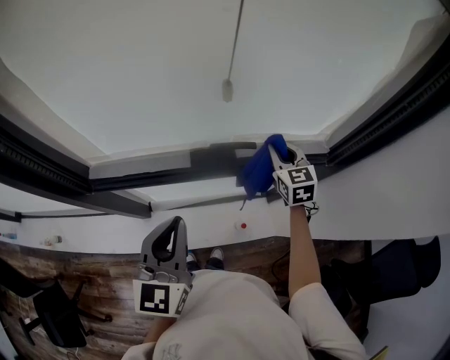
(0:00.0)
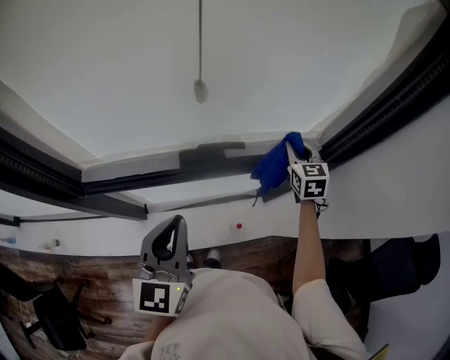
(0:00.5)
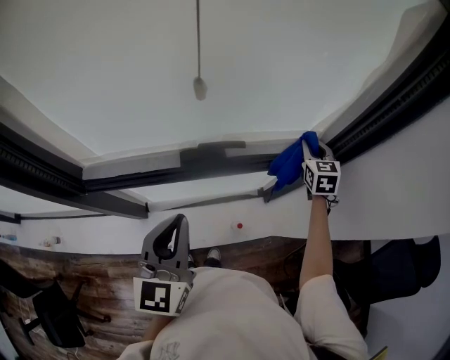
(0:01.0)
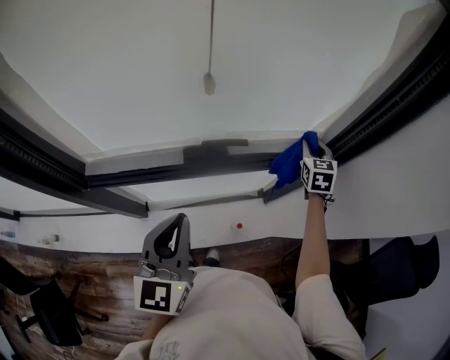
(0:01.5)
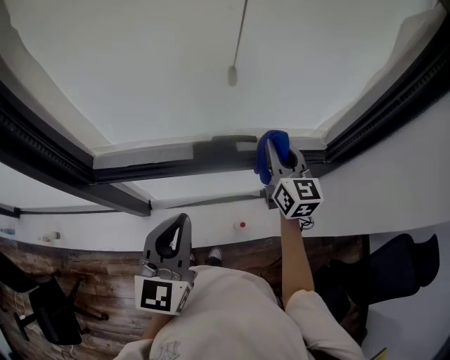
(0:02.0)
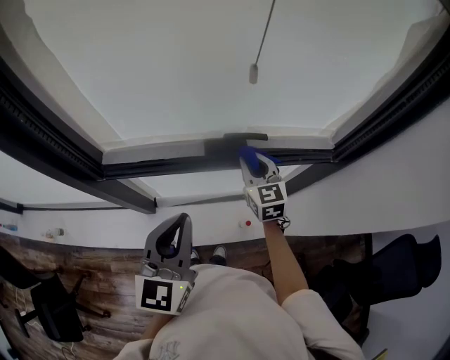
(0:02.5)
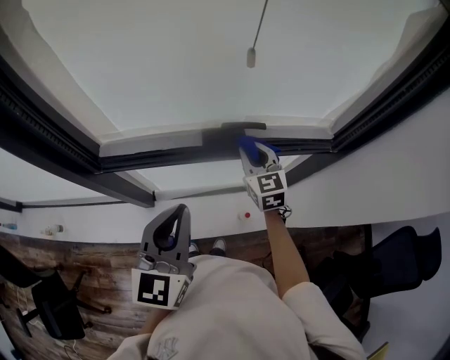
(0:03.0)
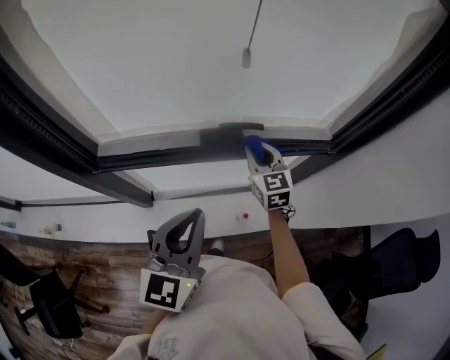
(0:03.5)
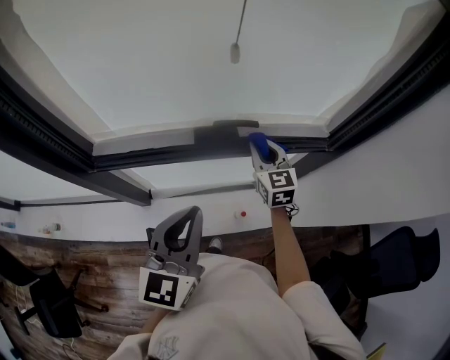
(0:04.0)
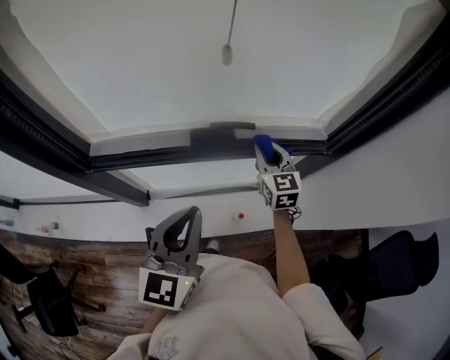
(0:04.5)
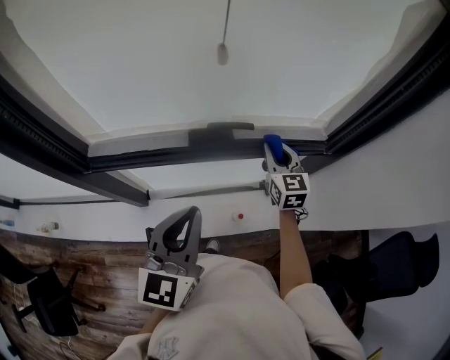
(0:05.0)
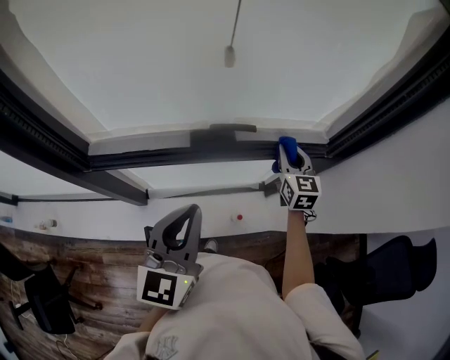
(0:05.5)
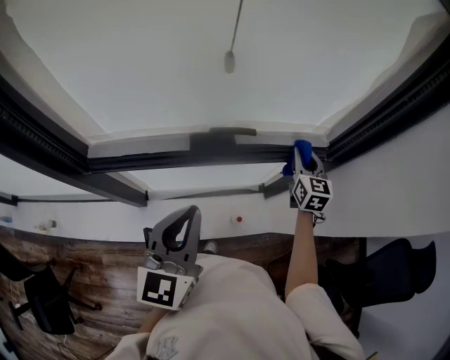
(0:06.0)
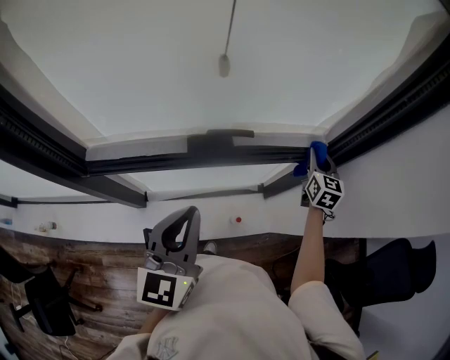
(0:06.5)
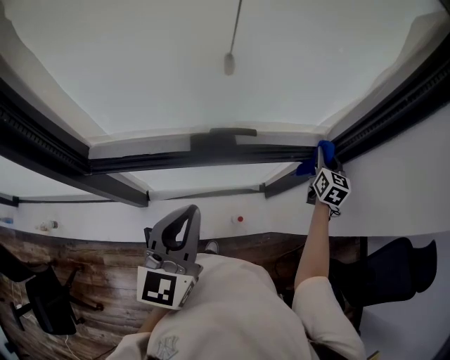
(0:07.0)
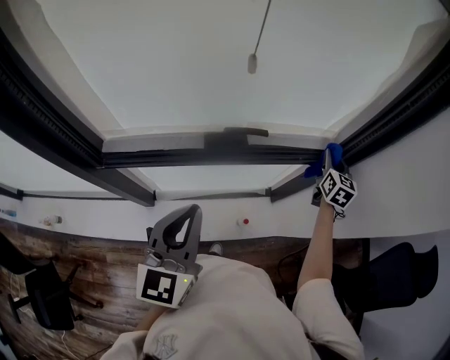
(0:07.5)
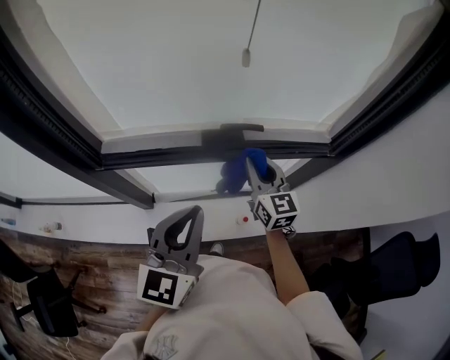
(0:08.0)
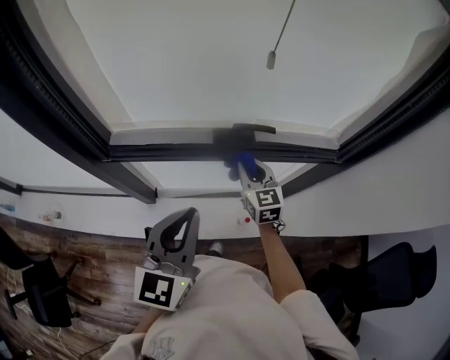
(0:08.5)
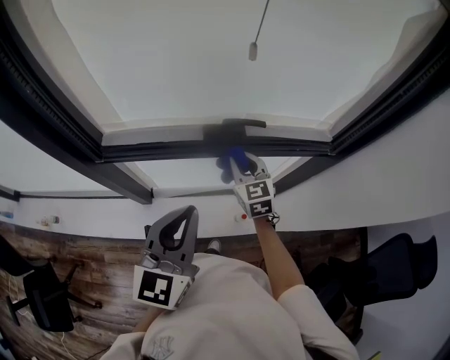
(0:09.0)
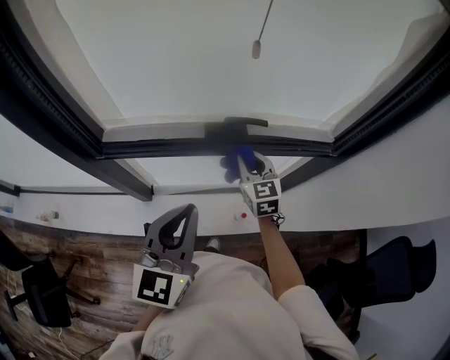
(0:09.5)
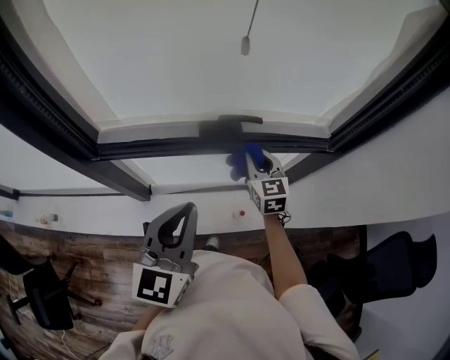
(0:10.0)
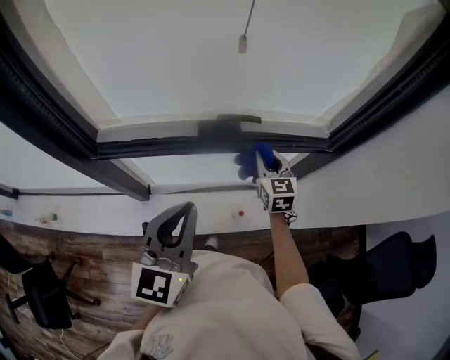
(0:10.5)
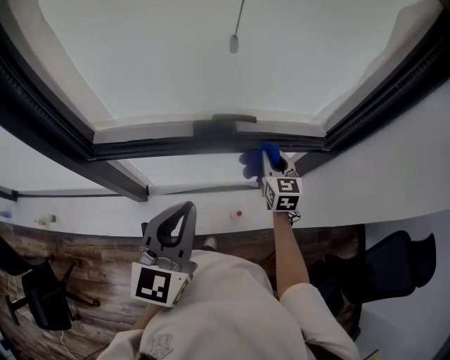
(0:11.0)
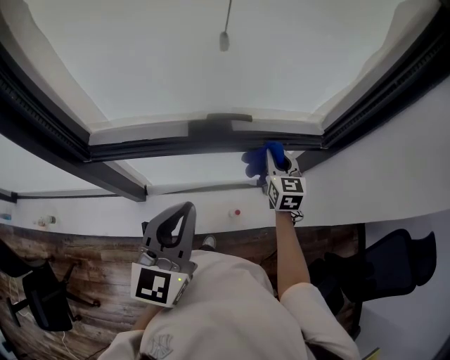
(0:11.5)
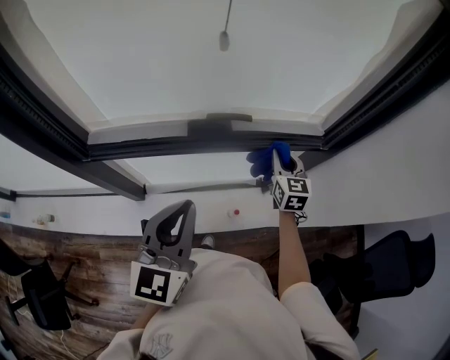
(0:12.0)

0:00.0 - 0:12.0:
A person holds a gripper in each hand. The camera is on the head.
0:00.0 - 0:02.0: The right gripper moves upward and backward, approximately 10 cm, goes to the right and returns, some 15 cm each way, and turns by approximately 20 degrees.
0:02.0 - 0:04.0: The right gripper goes approximately 10 cm downward.
0:04.0 - 0:06.0: The right gripper moves to the right, roughly 15 cm.
0:06.0 - 0:08.0: The right gripper is displaced to the left and backward by approximately 20 cm, and swivels about 20 degrees.
0:08.0 - 0:10.0: The right gripper shifts roughly 5 cm downward.
0:10.0 - 0:12.0: The right gripper moves to the right, some 10 cm.

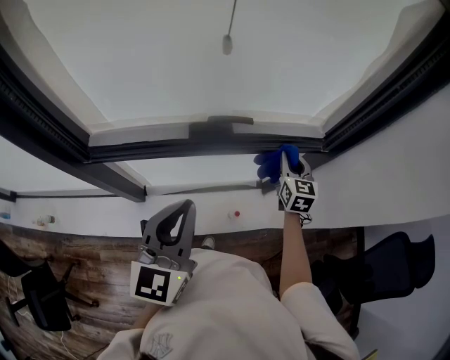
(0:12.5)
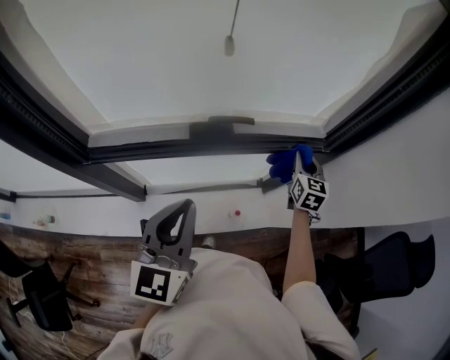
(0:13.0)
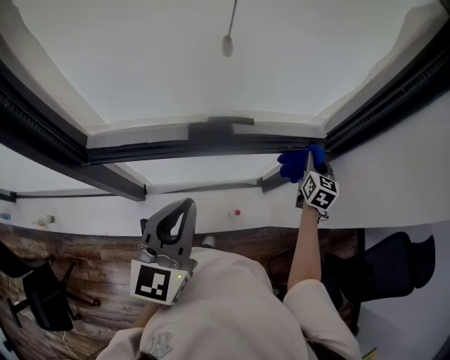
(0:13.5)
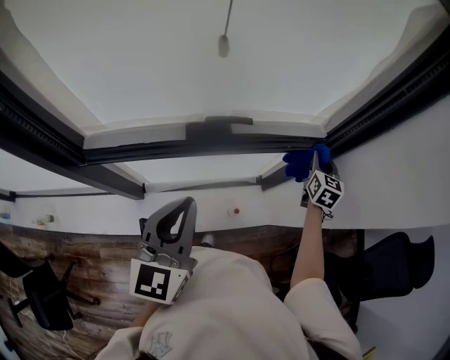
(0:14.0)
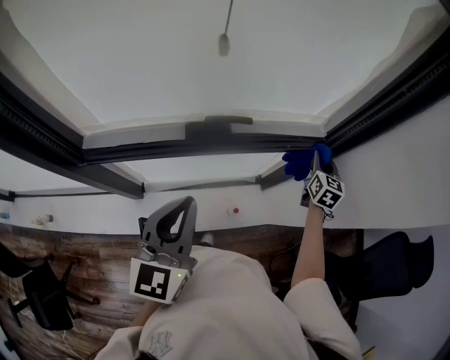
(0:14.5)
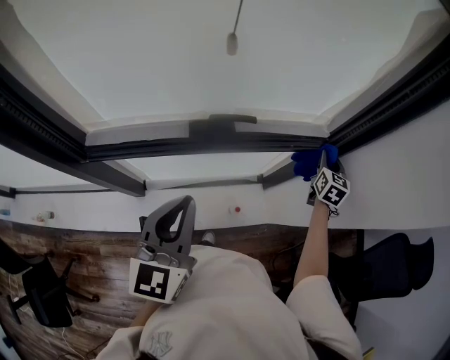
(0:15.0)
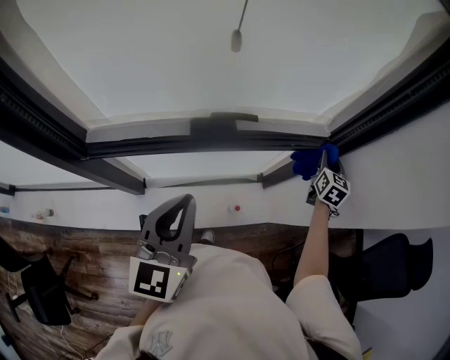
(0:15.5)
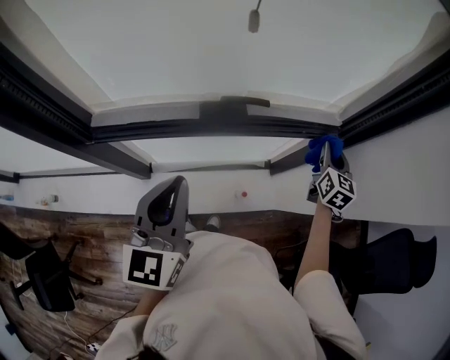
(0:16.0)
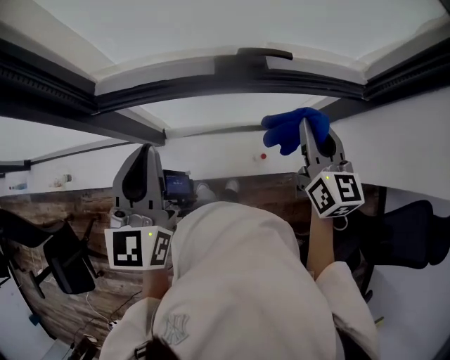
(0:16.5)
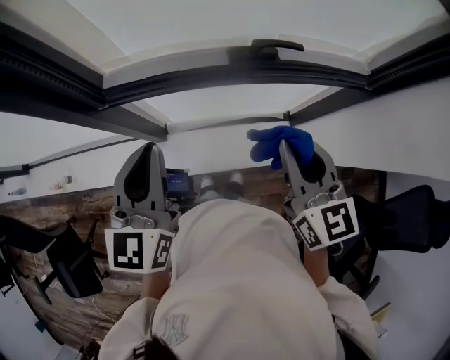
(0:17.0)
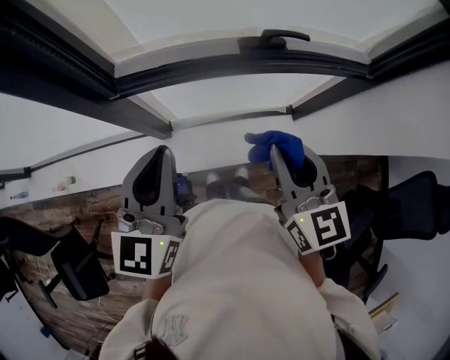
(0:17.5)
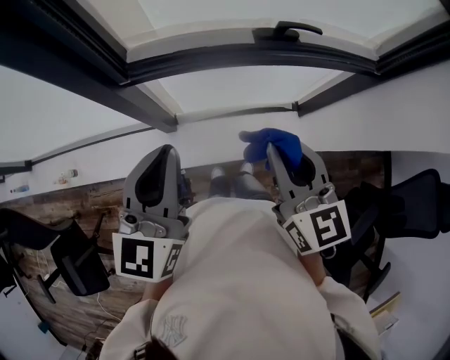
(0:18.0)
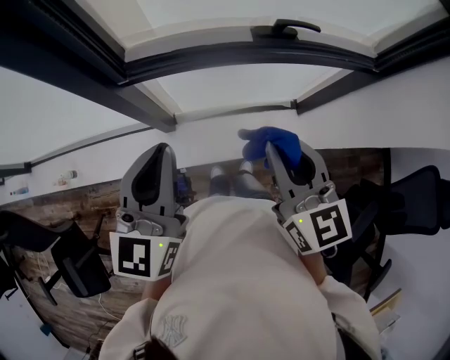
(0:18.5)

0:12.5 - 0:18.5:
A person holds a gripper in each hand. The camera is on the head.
0:12.5 - 0:14.5: The right gripper moves to the right, roughly 10 cm.
0:14.5 - 0:16.5: The right gripper shifts approximately 25 cm to the left and backward, and swivels about 30 degrees. Meanwhile the left gripper moves to the left, about 15 cm.
0:16.5 - 0:18.5: The right gripper goes roughly 25 cm to the left and backward. Meanwhile the left gripper heads to the left and backward, covering roughly 10 cm.

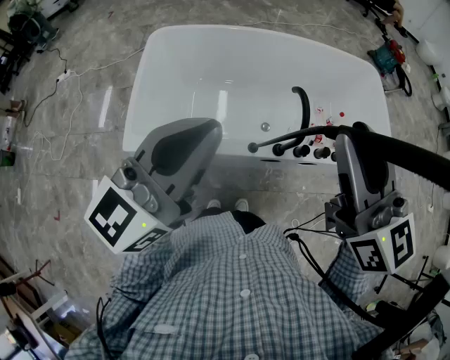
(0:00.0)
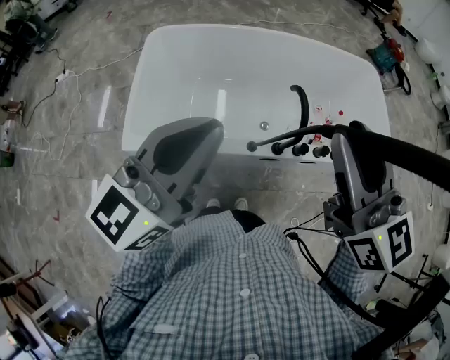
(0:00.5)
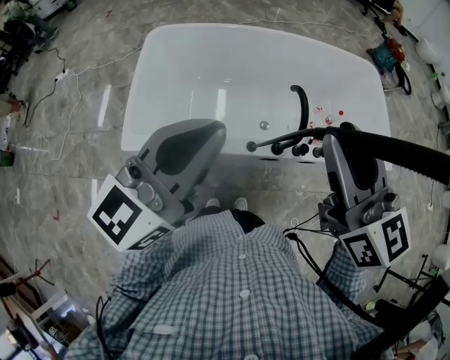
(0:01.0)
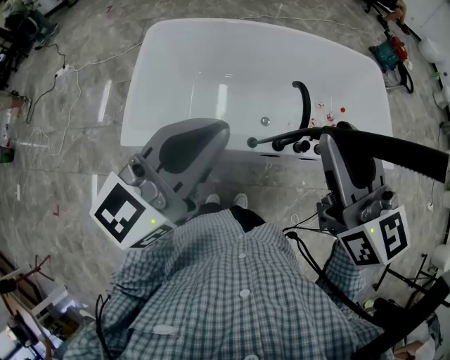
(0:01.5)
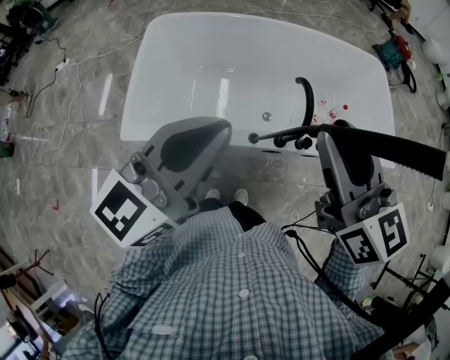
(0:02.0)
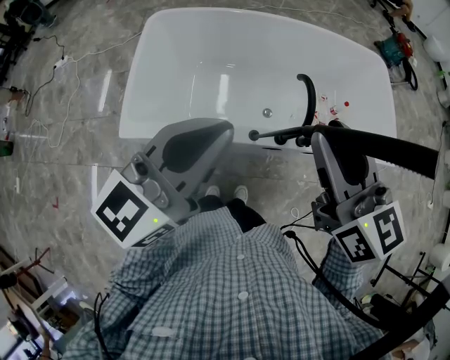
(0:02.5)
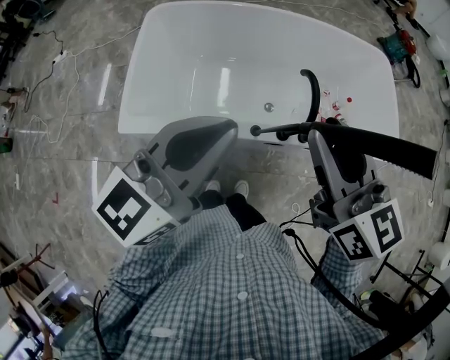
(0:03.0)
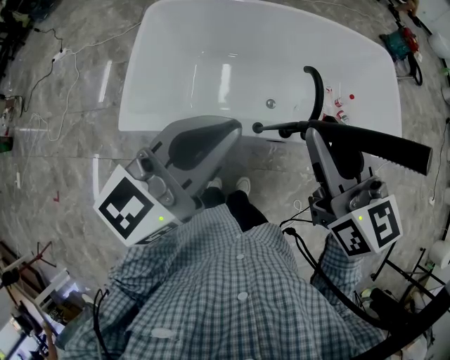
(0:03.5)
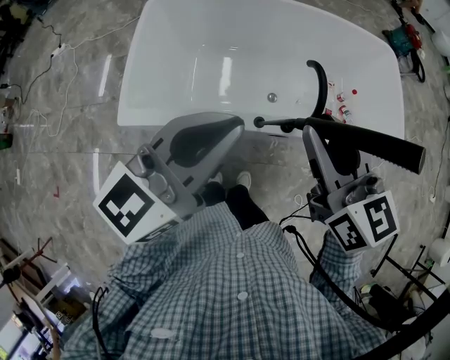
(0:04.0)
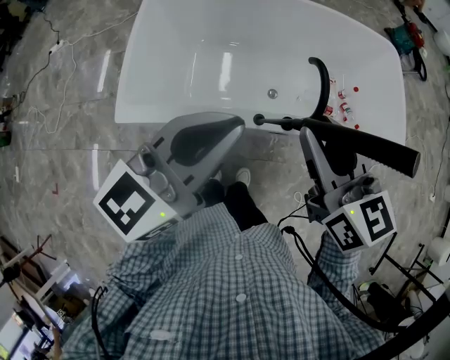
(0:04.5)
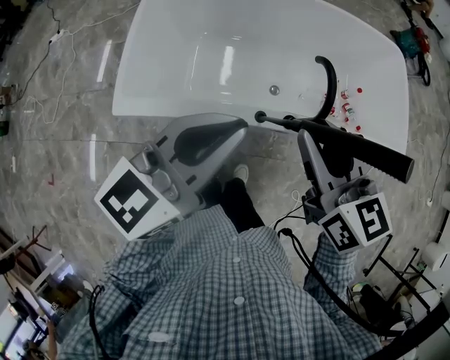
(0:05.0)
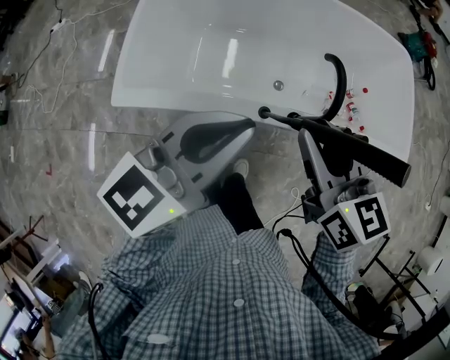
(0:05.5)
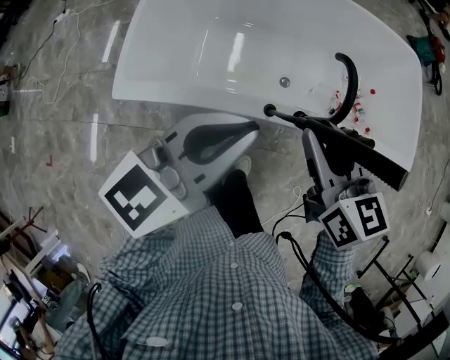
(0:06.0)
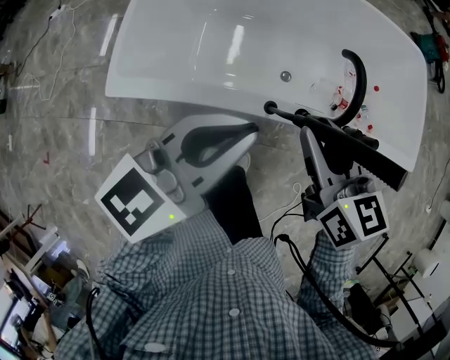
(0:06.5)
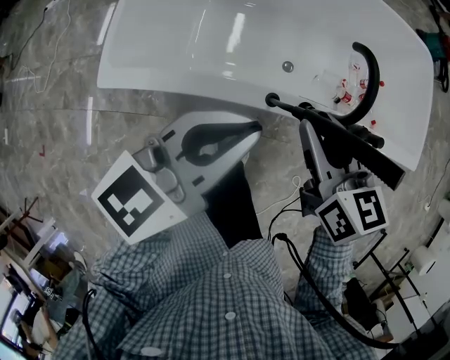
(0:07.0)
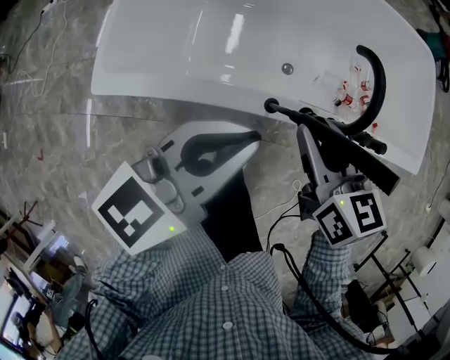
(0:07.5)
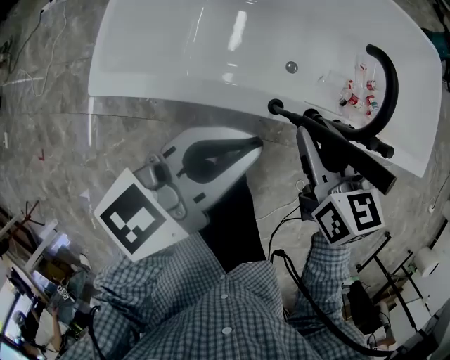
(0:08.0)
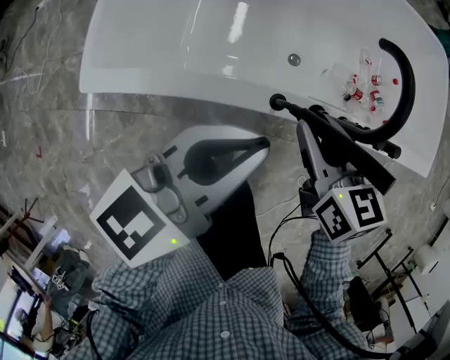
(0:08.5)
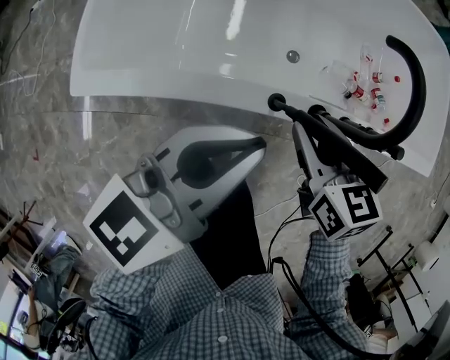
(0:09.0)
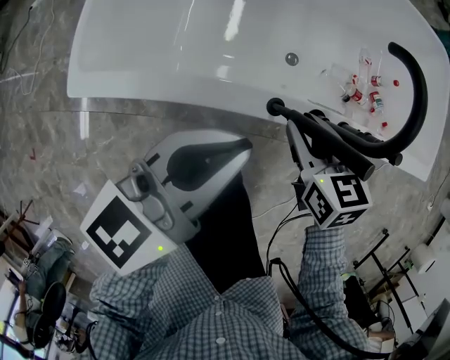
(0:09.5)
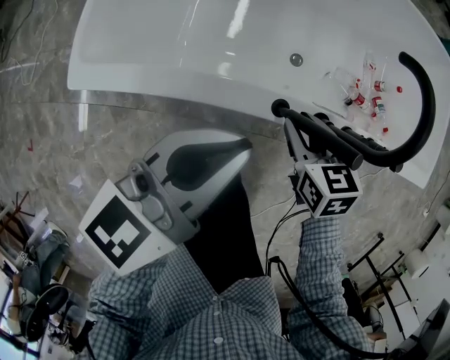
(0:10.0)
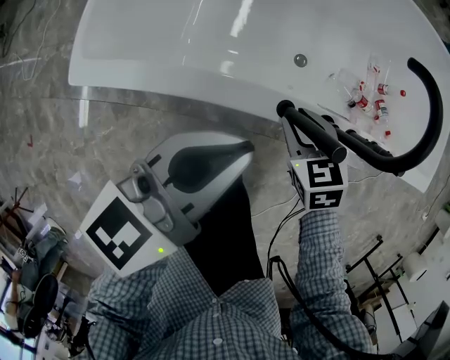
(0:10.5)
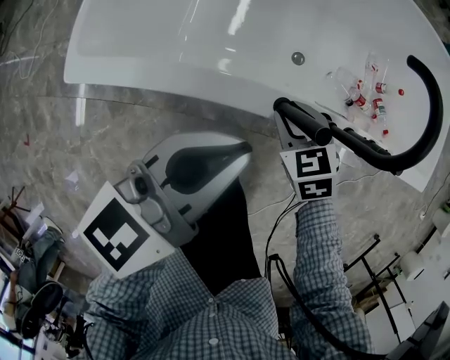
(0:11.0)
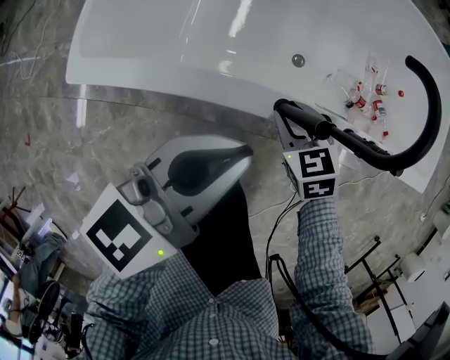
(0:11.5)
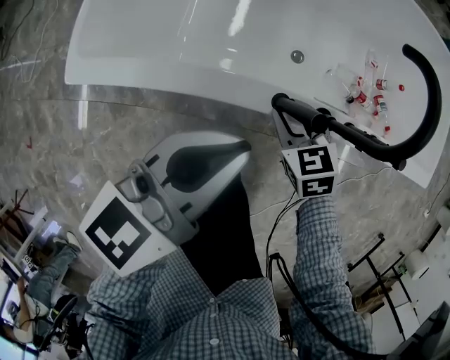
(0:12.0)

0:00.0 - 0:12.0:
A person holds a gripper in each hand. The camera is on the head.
0:00.0 - 0:02.0: The right gripper travels downward by roughly 5 cm.
0:02.0 - 0:04.0: The right gripper is displaced downward by about 5 cm.
0:04.0 - 0:06.0: The two grippers go some 10 cm downward.
0:06.0 - 0:08.0: The grippers both shift downward by about 15 cm.
0:08.0 - 0:10.0: The right gripper goes roughly 15 cm downward, while the left gripper shifts about 10 cm downward.
